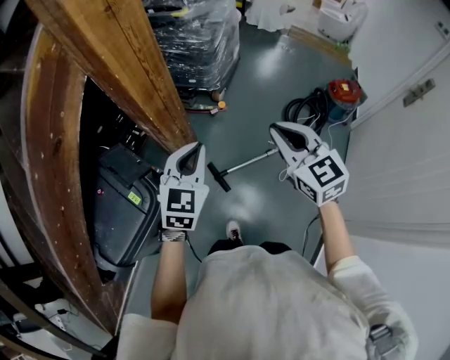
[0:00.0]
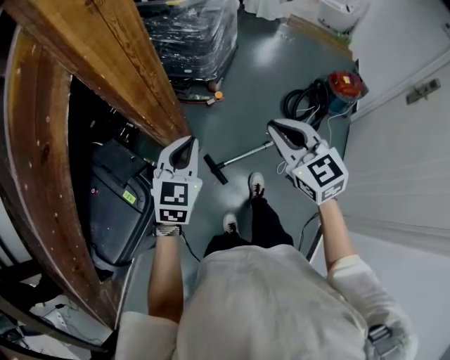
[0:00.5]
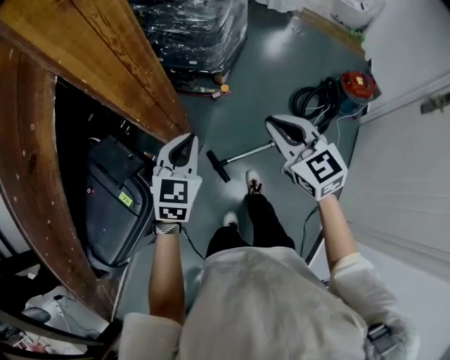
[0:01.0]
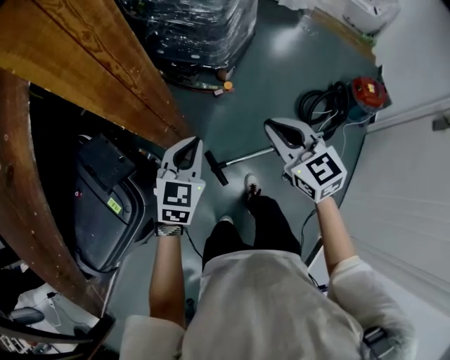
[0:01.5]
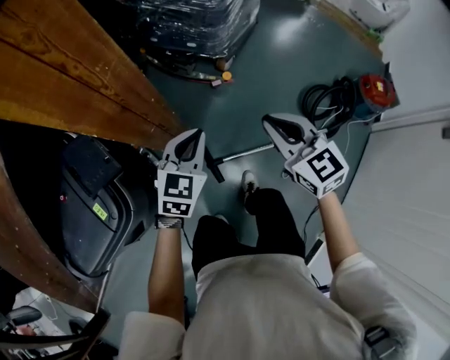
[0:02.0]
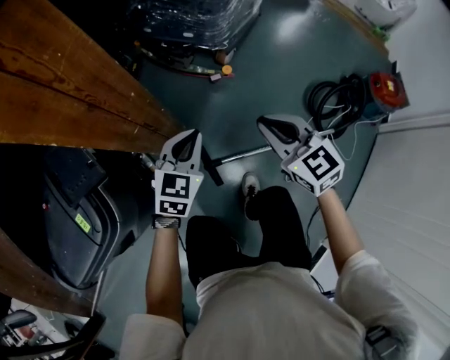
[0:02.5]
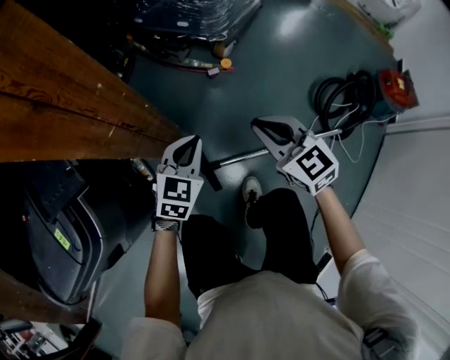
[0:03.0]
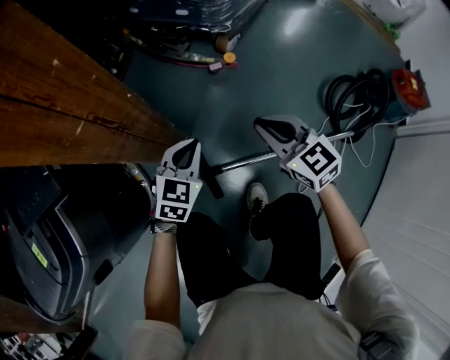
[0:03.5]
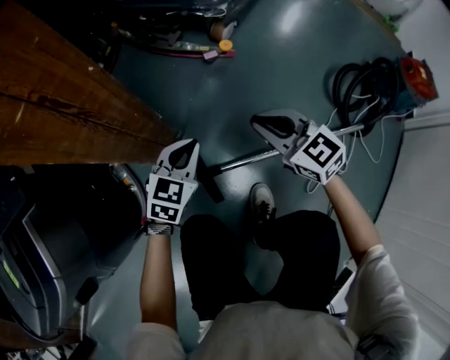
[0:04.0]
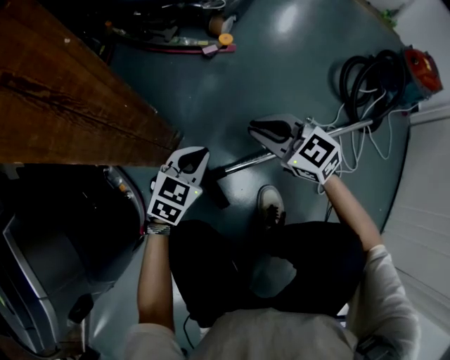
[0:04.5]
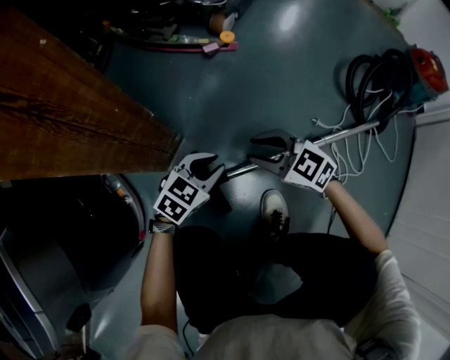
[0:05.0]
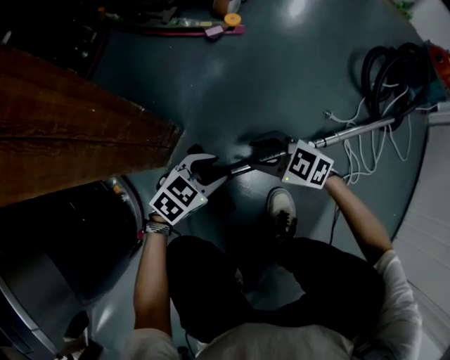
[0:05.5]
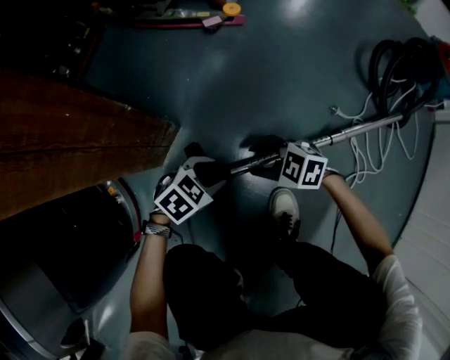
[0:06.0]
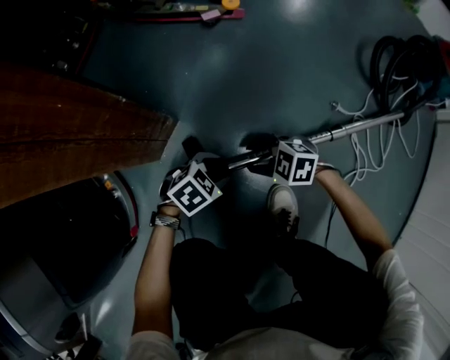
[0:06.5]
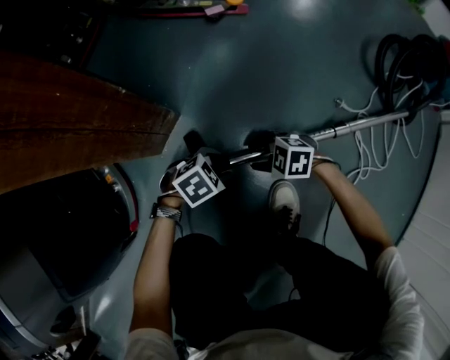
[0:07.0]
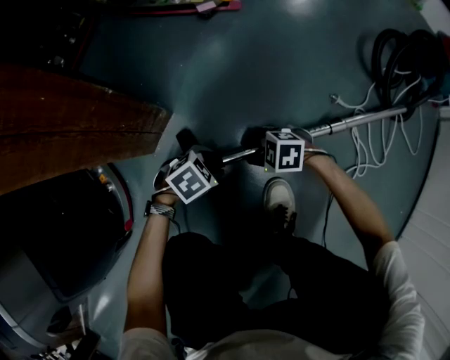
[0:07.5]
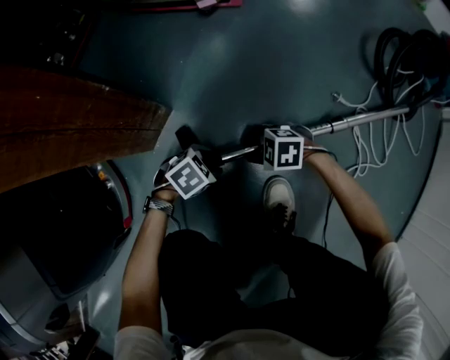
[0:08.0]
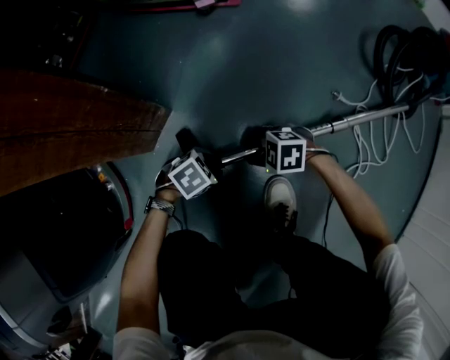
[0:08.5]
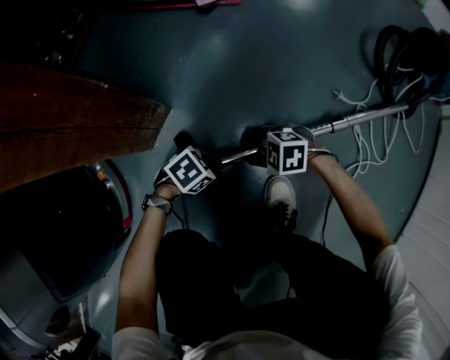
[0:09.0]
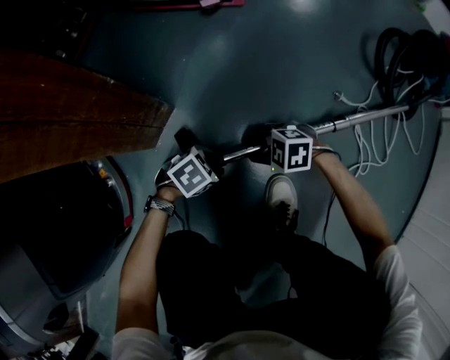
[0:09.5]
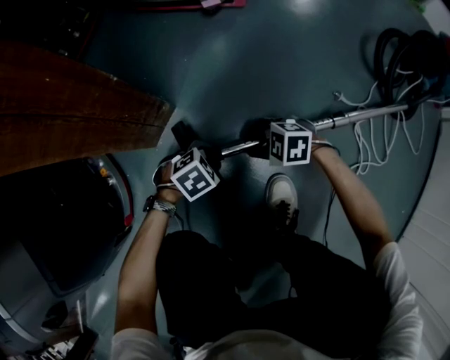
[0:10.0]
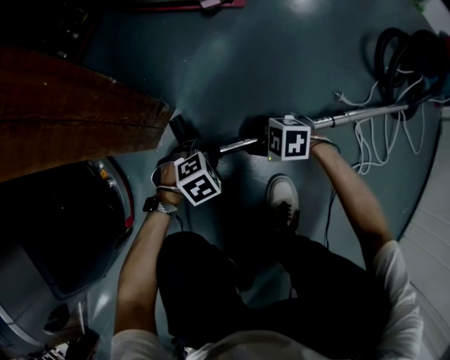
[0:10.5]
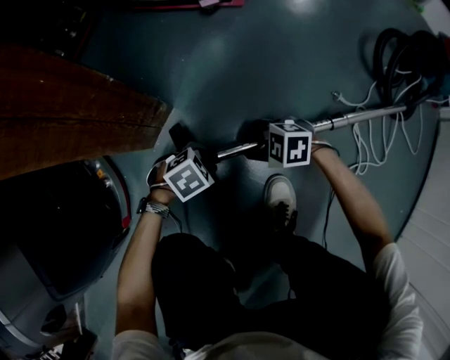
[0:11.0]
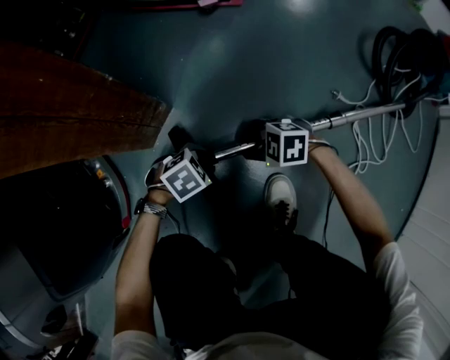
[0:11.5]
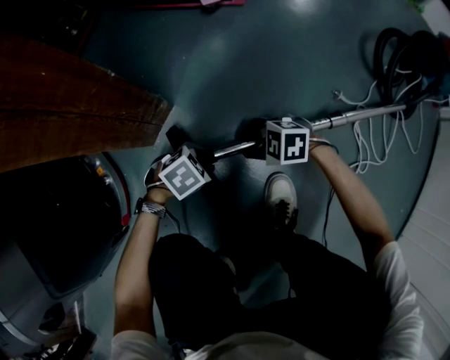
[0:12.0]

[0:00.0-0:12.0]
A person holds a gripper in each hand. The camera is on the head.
0:00.0 to 0:02.0: The grippers both shift downward and forward by about 30 cm.
0:02.0 to 0:04.0: The grippers both shift downward by some 40 cm.
0:04.0 to 0:06.0: Both grippers move downward, about 30 cm. The left gripper rotates about 40 degrees, and opens up. The right gripper changes its angle by some 40 degrees, and opens its fingers.
0:06.0 to 0:08.0: Both grippers travel together downward, roughly 10 cm.
0:08.0 to 0:10.0: The grippers stay close to where they were, moving slightly.
0:10.0 to 0:12.0: The grippers move only a little.

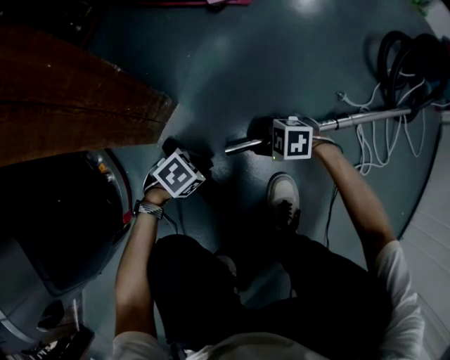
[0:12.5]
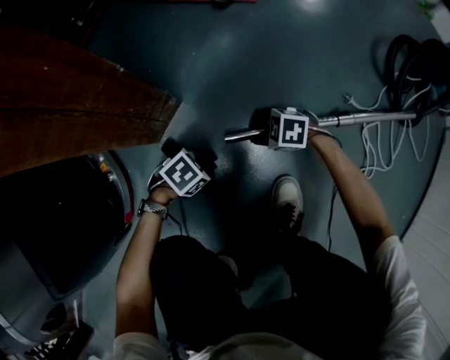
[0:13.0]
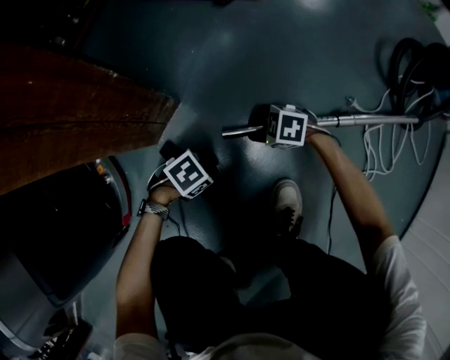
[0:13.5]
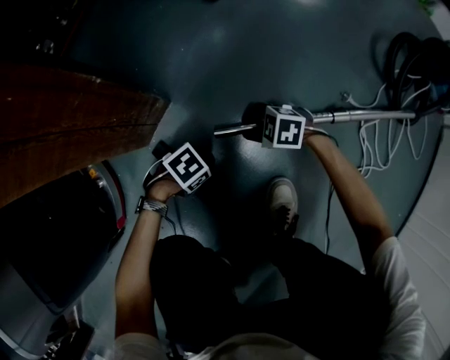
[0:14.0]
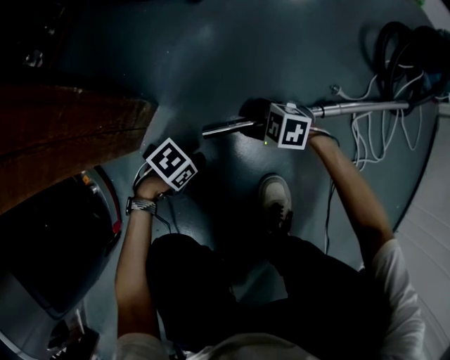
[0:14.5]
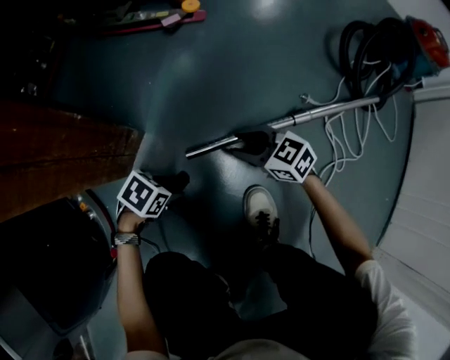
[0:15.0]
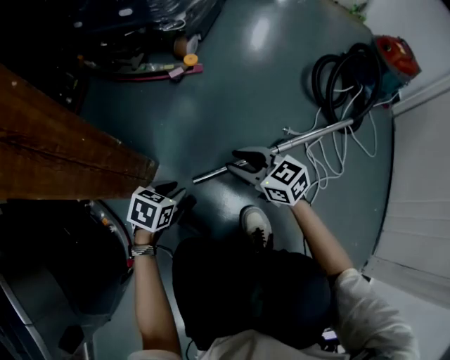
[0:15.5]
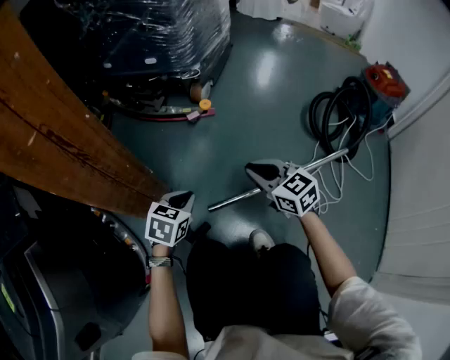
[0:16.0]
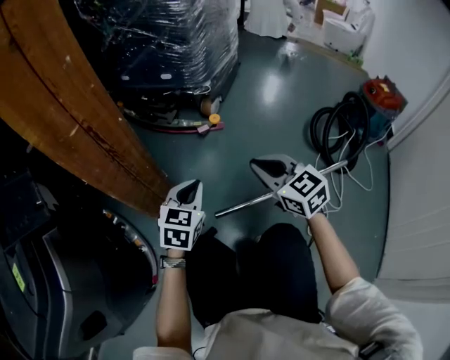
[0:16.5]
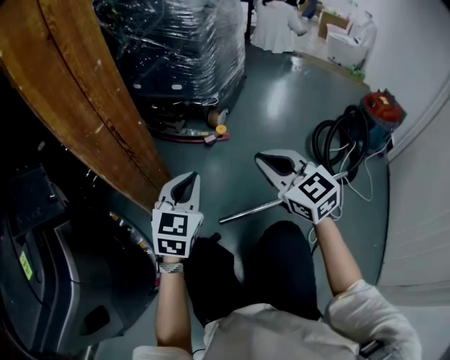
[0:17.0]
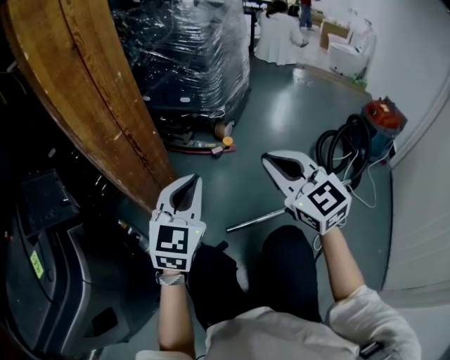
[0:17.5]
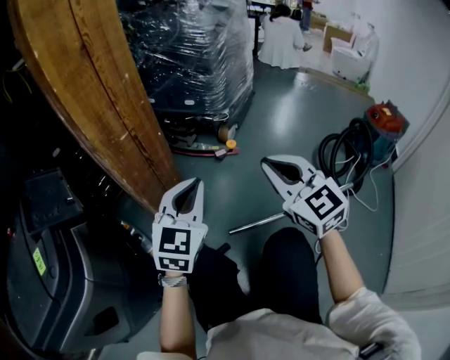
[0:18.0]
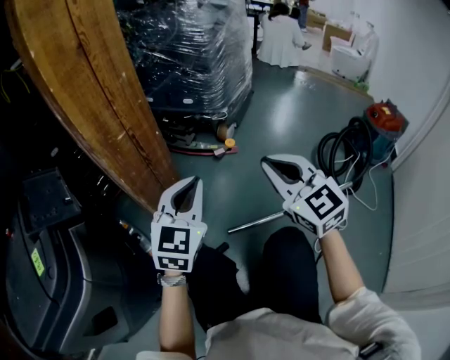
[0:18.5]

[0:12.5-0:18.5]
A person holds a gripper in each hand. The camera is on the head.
0:12.5 to 0:14.5: The right gripper moves backward, some 5 cm.
0:14.5 to 0:16.5: Both grippers move upward, some 40 cm. The left gripper tips its fingers upward by approximately 30 degrees, and closes its fingers. The right gripper angles its fingers upward, by some 40 degrees, and closes its fingers.
0:16.5 to 0:18.5: Both grippers move upward, about 15 cm. The left gripper changes its angle by roughly 20 degrees.

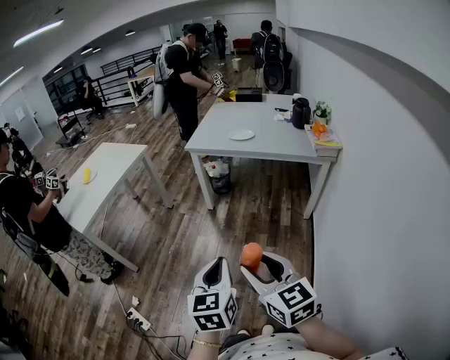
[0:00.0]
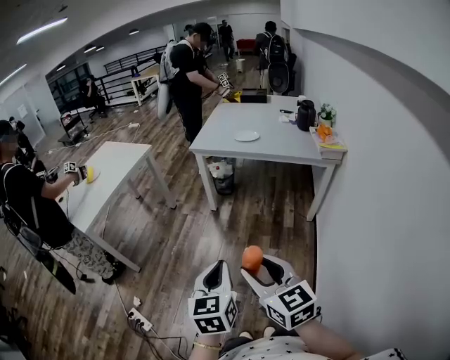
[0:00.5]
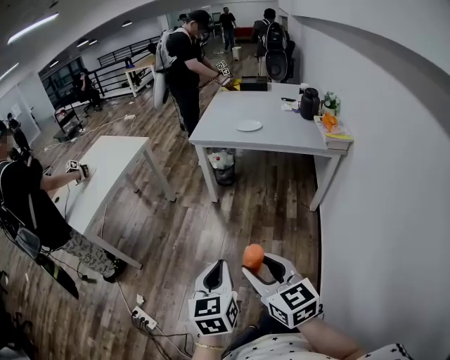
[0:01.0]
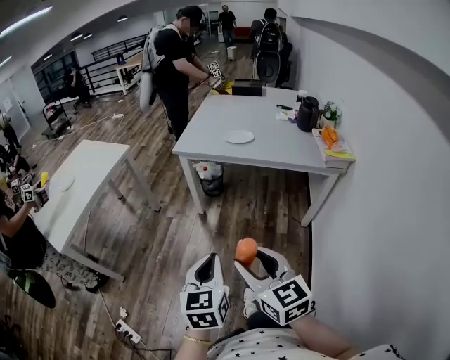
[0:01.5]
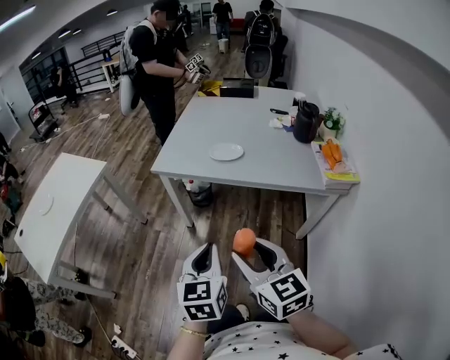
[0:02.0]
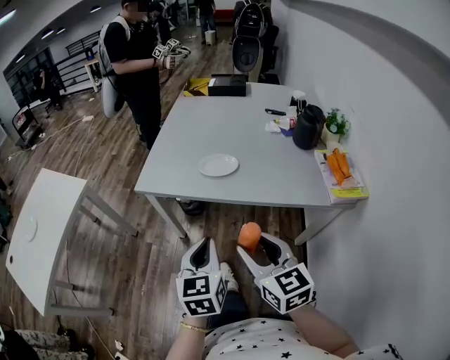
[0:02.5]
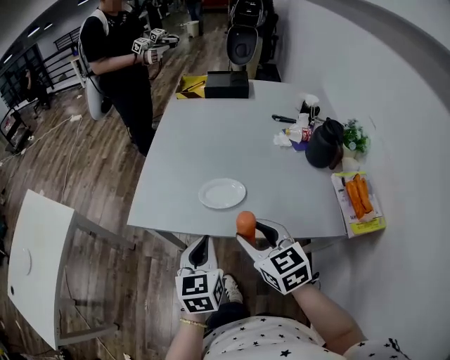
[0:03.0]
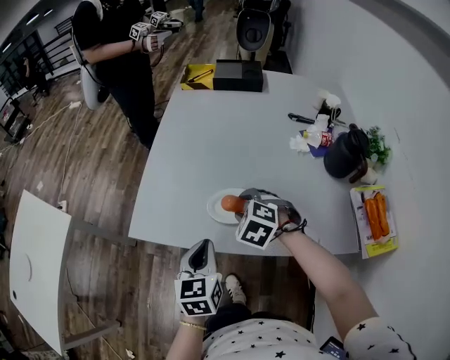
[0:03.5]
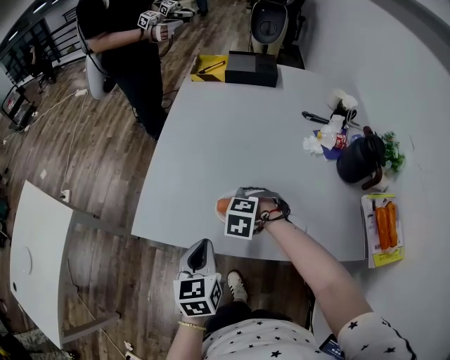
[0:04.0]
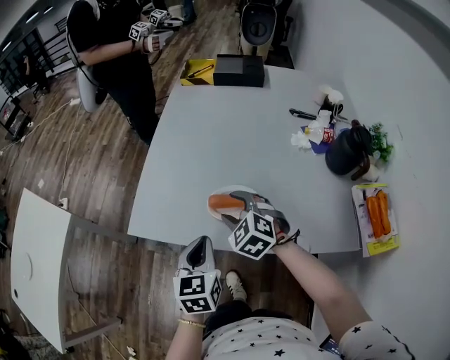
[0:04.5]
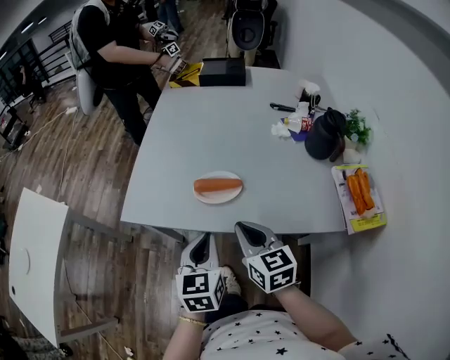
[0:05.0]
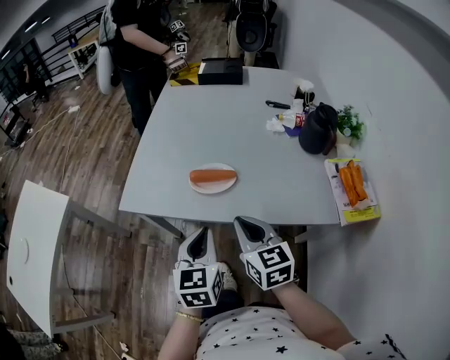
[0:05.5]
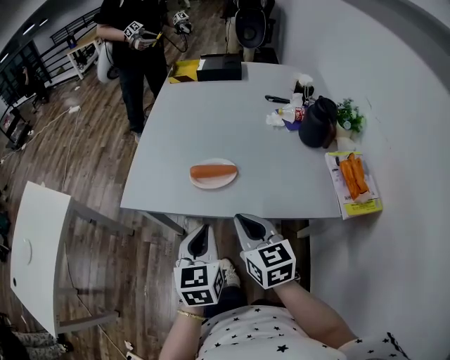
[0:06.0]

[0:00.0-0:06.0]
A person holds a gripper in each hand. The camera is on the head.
0:00.0 to 0:02.0: The two grippers go roughly 35 cm forward.
0:02.0 to 0:04.0: Both grippers are carried forward, some 50 cm. The right gripper heads downward, covering approximately 25 cm, and tilts its fingers approximately 60 degrees downward.
0:04.0 to 0:06.0: The left gripper goes approximately 15 cm backward, to the right and upward. Meanwhile the right gripper travels backward and upward by roughly 25 cm, tips its fingers upward by approximately 50 degrees, and closes.

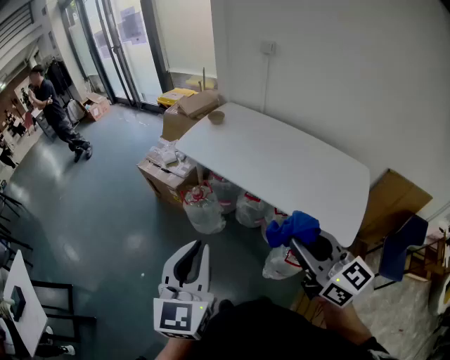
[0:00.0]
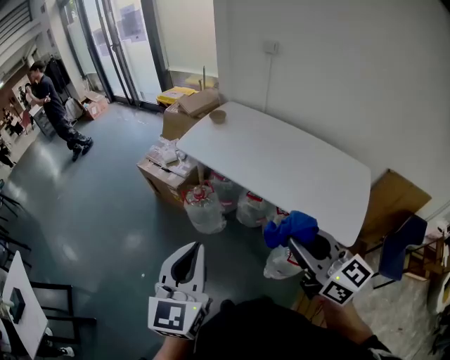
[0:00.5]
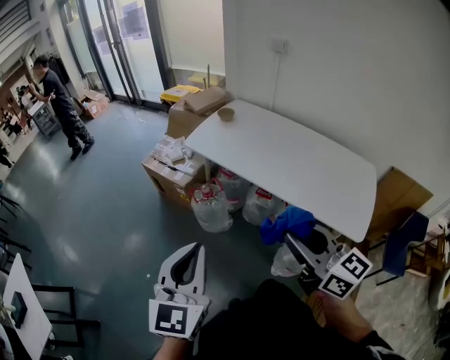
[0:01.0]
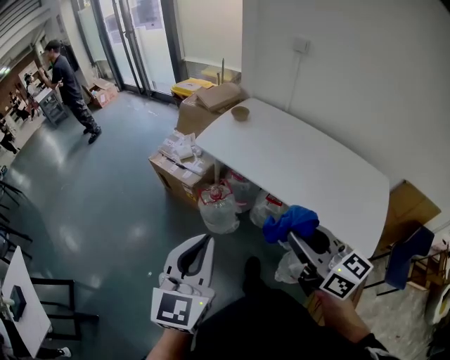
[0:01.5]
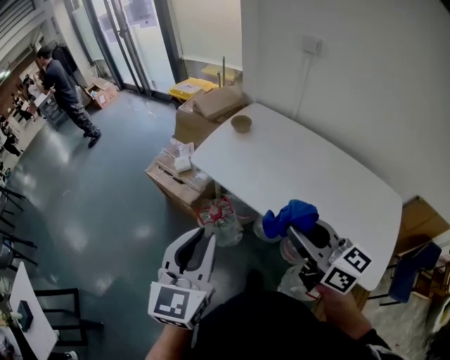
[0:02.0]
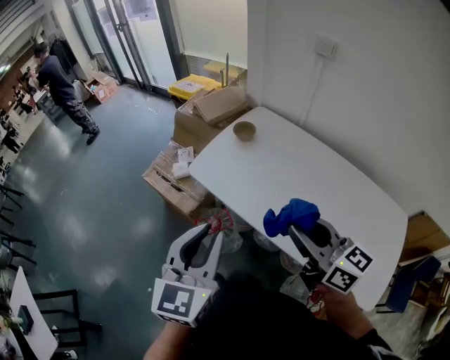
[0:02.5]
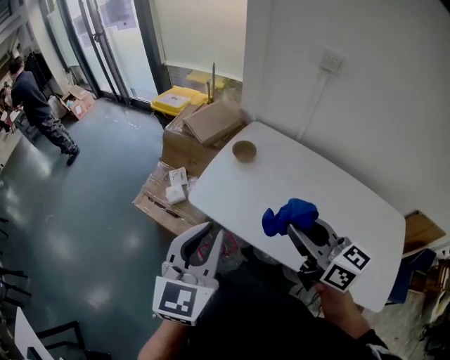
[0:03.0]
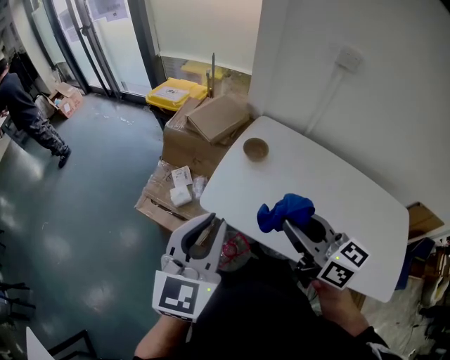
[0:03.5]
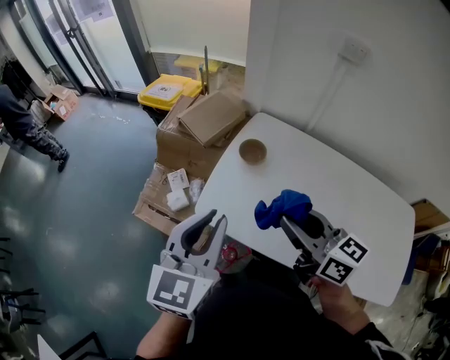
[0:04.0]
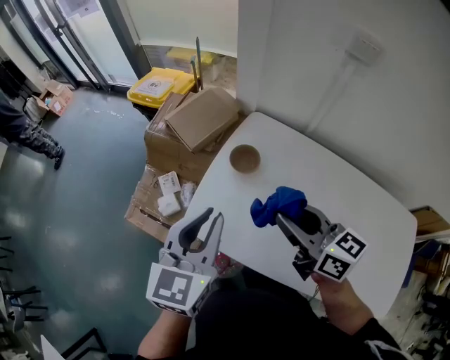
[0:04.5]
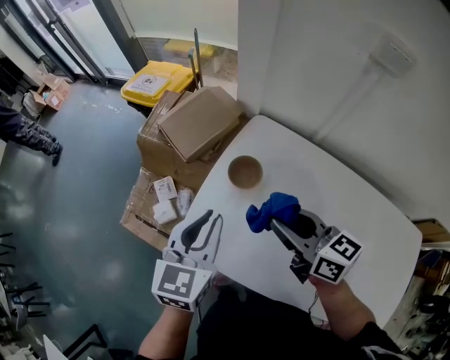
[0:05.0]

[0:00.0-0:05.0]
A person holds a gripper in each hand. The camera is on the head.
0:00.0 to 0:02.5: The grippers both shift forward by approximately 40 cm.
0:02.5 to 0:05.0: The pair of grippers is taken forward, some 40 cm.
